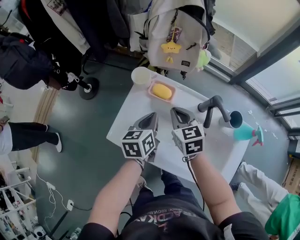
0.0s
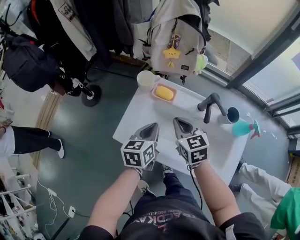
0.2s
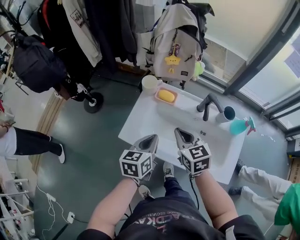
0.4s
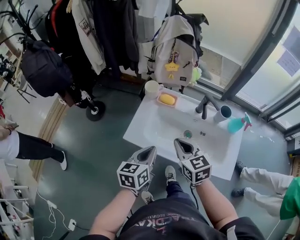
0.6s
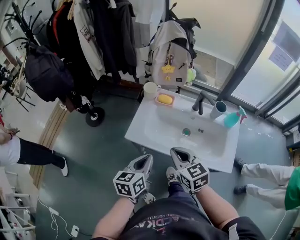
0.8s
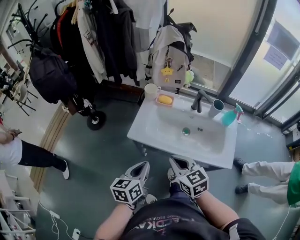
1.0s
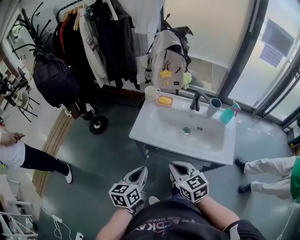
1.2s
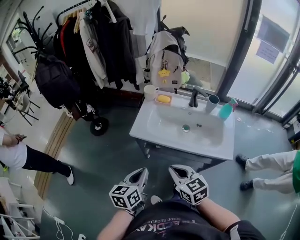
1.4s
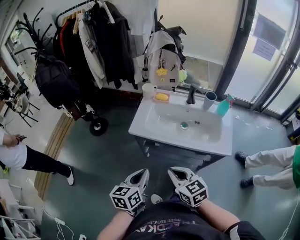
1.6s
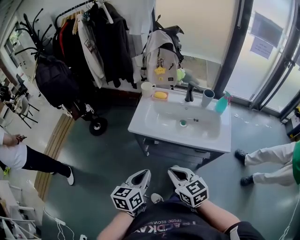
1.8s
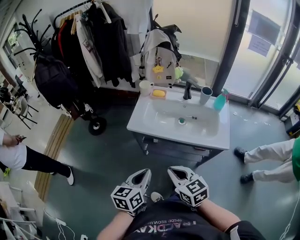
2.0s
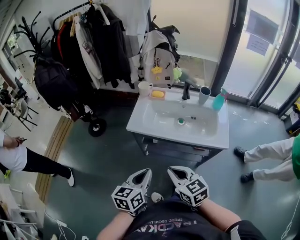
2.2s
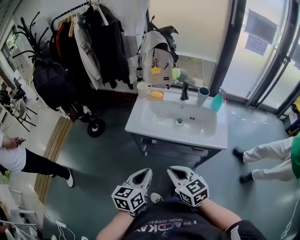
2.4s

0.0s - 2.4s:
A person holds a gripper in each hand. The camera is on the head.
0.0s - 1.2s: The grippers both shift backward by roughly 35 cm.
1.2s - 2.4s: Both grippers travel together backward, about 10 cm.

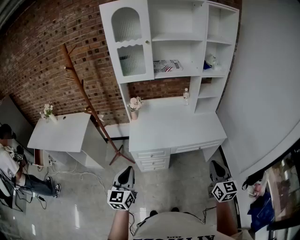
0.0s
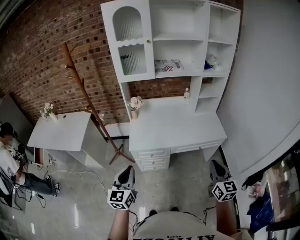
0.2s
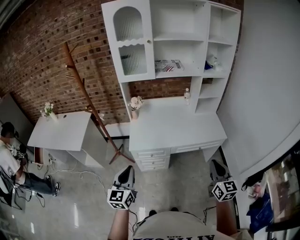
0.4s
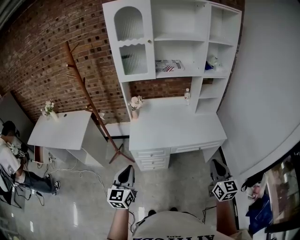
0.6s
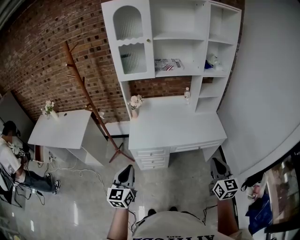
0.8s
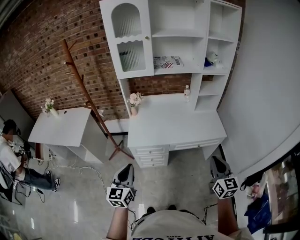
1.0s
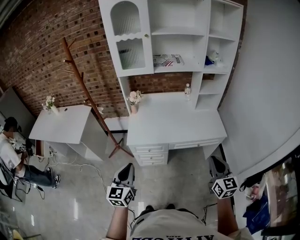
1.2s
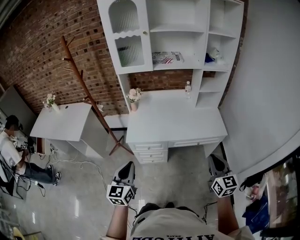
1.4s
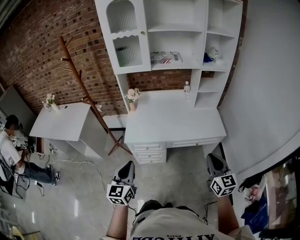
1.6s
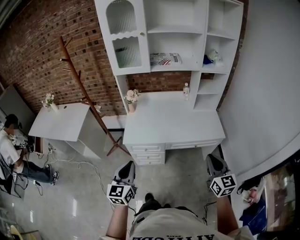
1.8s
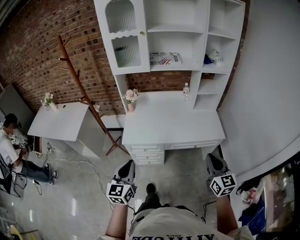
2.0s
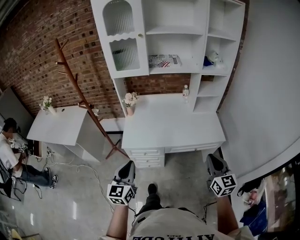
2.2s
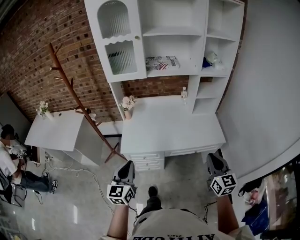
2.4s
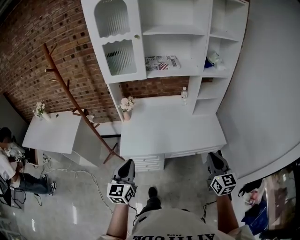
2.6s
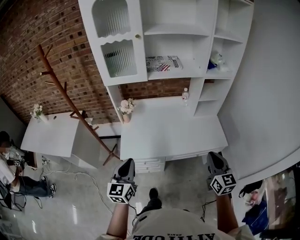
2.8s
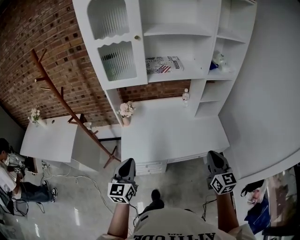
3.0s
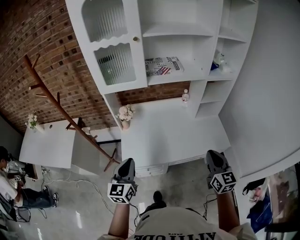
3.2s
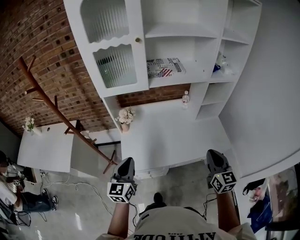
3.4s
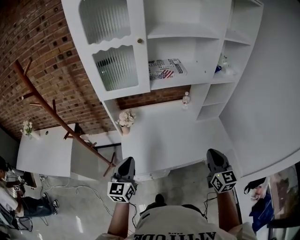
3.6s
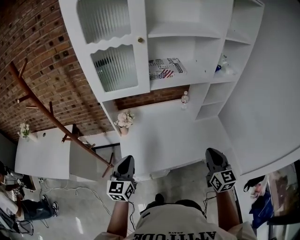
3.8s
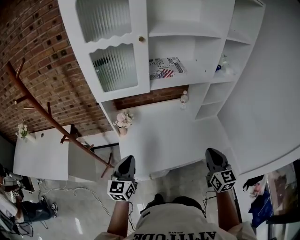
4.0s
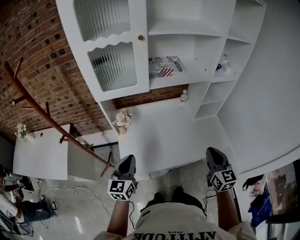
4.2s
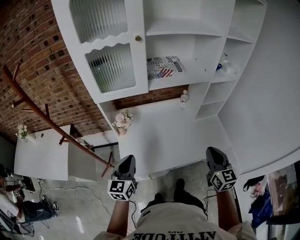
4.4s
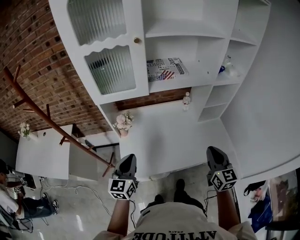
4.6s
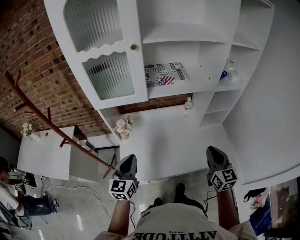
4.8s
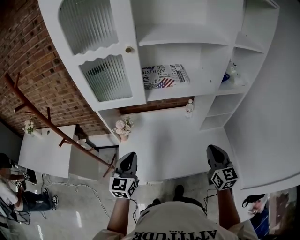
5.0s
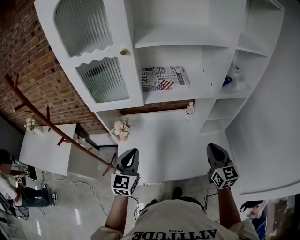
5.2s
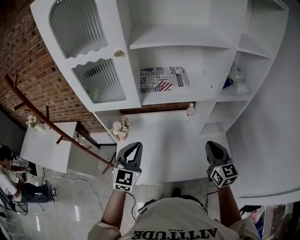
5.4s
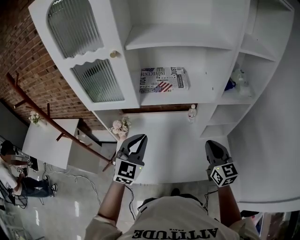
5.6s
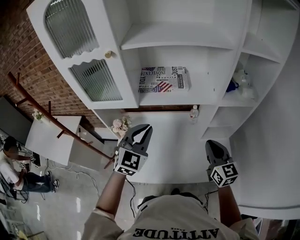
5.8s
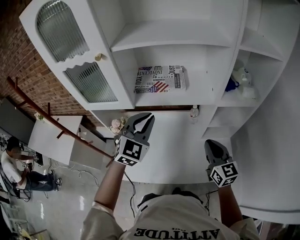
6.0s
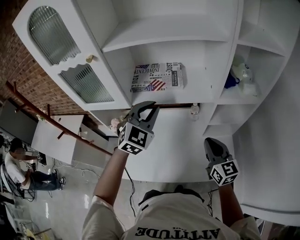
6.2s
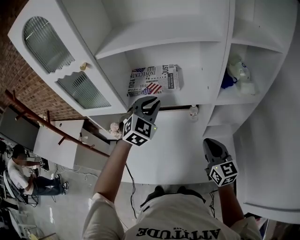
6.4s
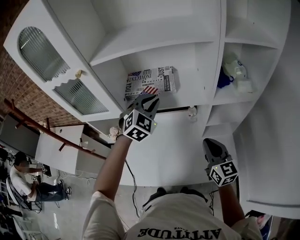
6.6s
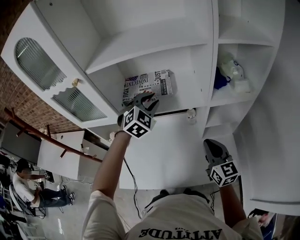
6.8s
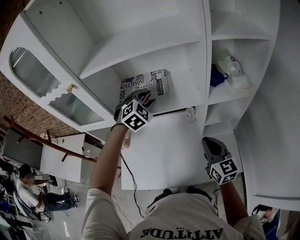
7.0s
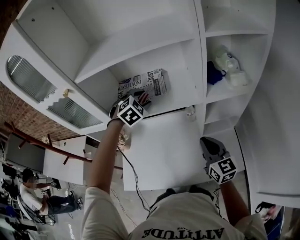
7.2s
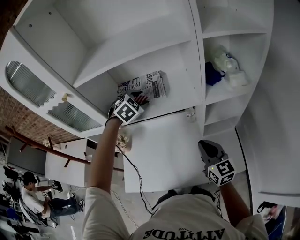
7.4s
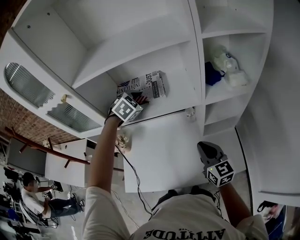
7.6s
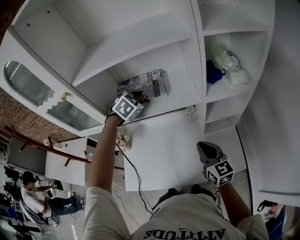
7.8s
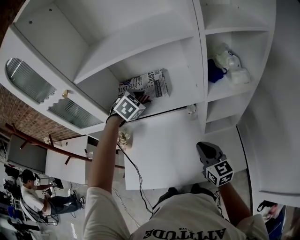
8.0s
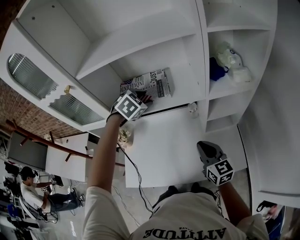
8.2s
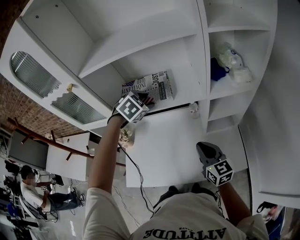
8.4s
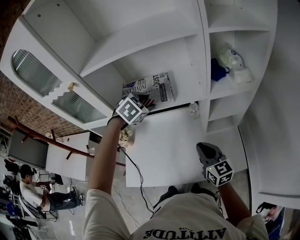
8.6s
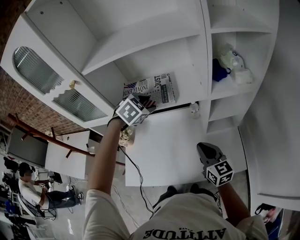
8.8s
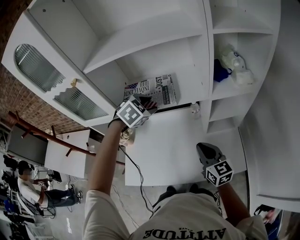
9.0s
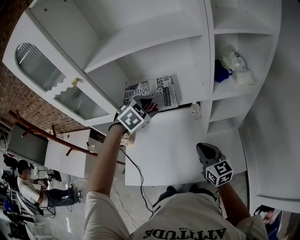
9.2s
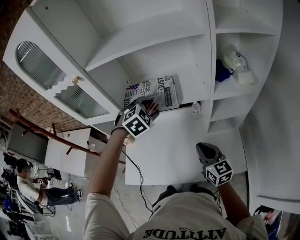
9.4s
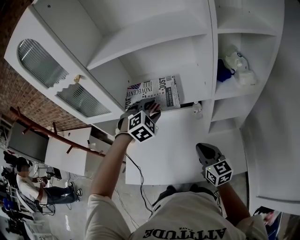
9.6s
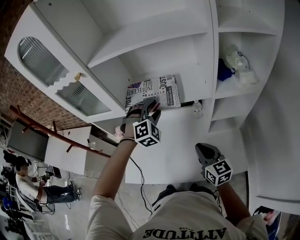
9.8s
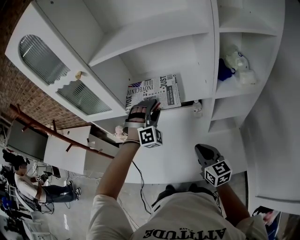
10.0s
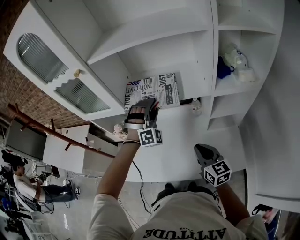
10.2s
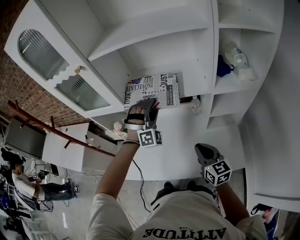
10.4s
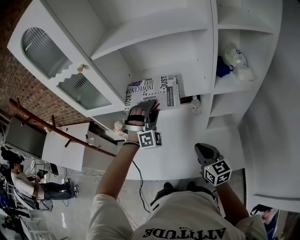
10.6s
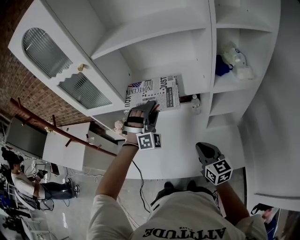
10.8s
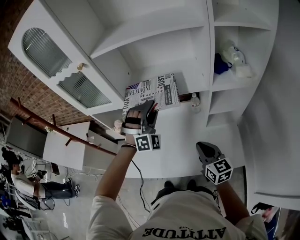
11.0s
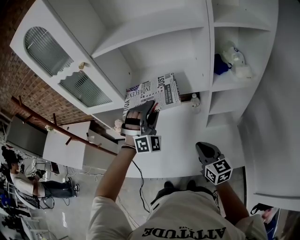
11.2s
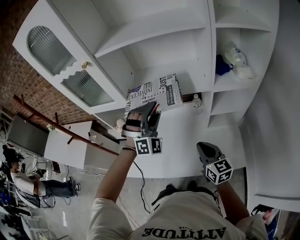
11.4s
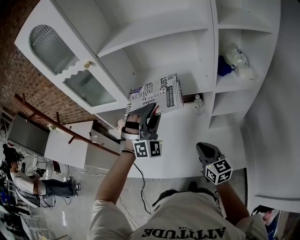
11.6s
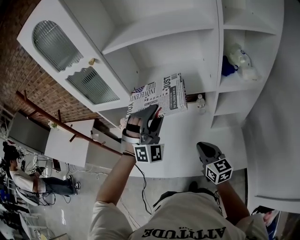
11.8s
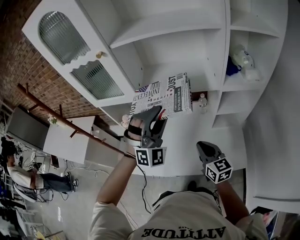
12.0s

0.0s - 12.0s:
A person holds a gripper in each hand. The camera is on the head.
0.0s - 1.6s: The left gripper travels to the right by roughly 5 cm. The right gripper moves about 5 cm.
1.6s - 3.0s: The grippers both shift forward by some 20 cm.
3.0s - 4.4s: The left gripper moves forward, roughly 15 cm, while the right gripper travels forward and to the left by approximately 10 cm.
4.4s - 6.0s: The right gripper shifts some 25 cm forward and to the right, and changes its angle by about 20 degrees. Meanwhile the left gripper heads forward, to the right and upward, covering roughly 35 cm, and turns by about 40 degrees.
6.0s - 7.6s: The left gripper is displaced forward by approximately 20 cm, points its fingers some 40 degrees further downward, and opens up.
7.6s - 9.0s: The left gripper is displaced backward by some 10 cm.
9.0s - 10.4s: The left gripper tips its fingers upward by approximately 40 degrees.
10.4s - 12.0s: The left gripper travels backward and upward by some 15 cm, and swivels roughly 20 degrees.

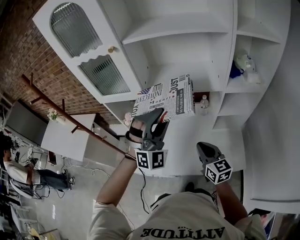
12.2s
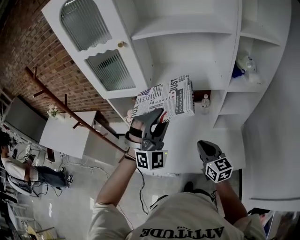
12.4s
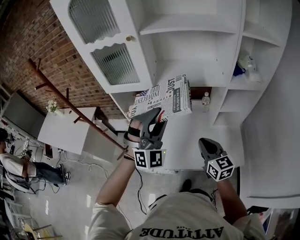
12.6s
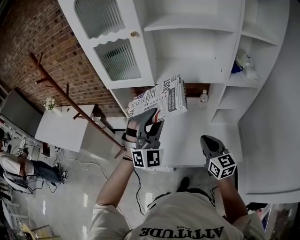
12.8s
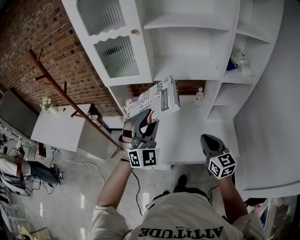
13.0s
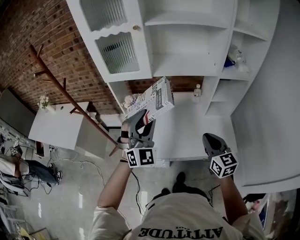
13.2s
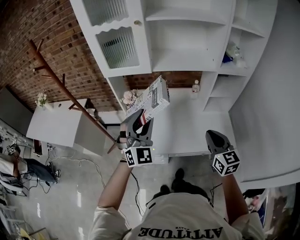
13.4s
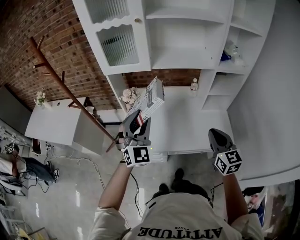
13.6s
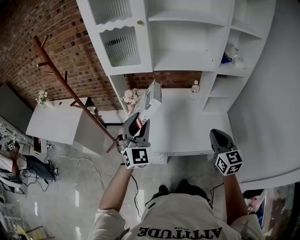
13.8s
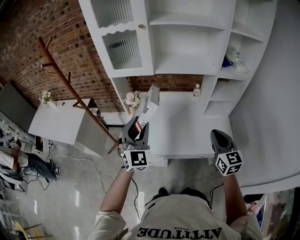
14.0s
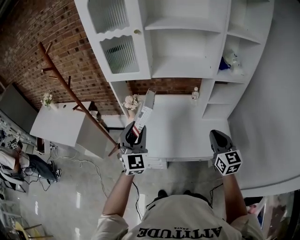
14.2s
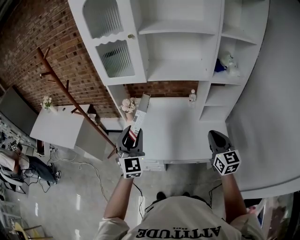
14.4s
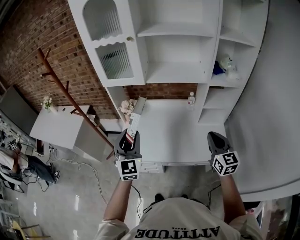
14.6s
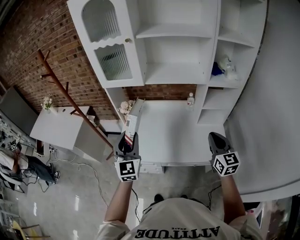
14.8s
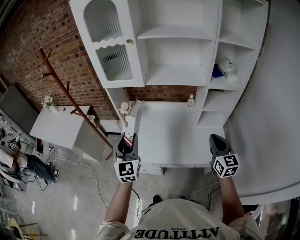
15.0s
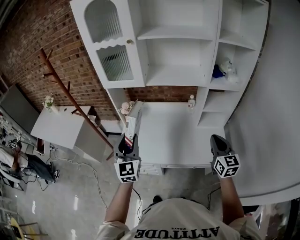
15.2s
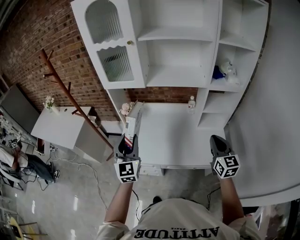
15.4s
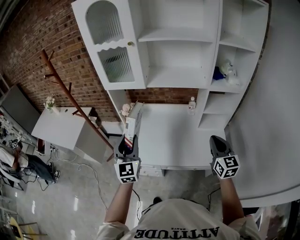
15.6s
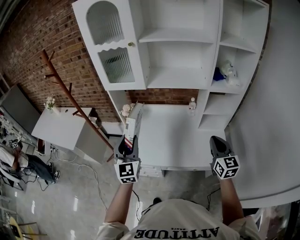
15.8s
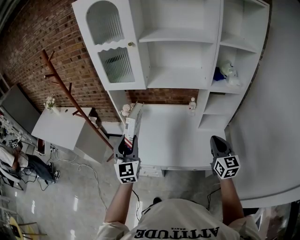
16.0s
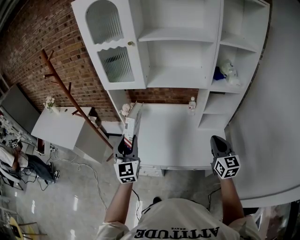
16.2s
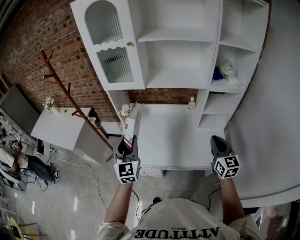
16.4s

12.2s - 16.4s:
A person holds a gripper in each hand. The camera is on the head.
12.2s - 13.6s: The left gripper moves to the left and backward, some 25 cm, and changes its angle by roughly 30 degrees, while the right gripper goes some 15 cm backward and upward.
13.6s - 15.0s: The right gripper shifts some 10 cm to the right, while the left gripper swivels about 30 degrees.
15.0s - 16.4s: The two grippers keep their place.

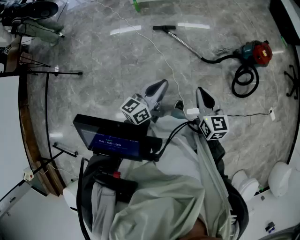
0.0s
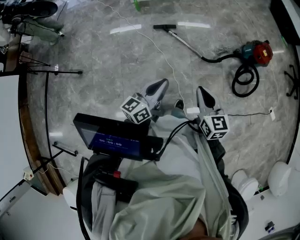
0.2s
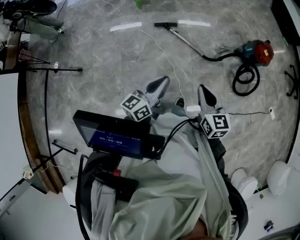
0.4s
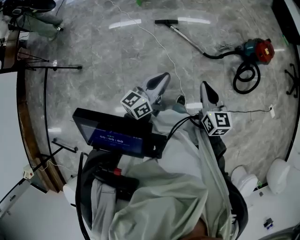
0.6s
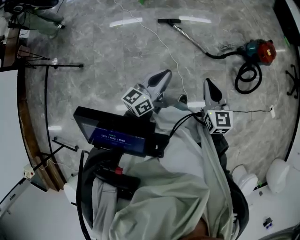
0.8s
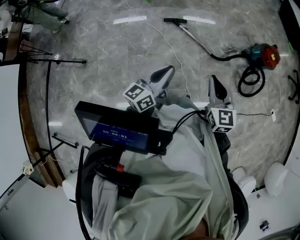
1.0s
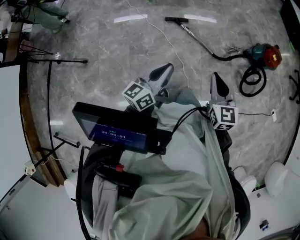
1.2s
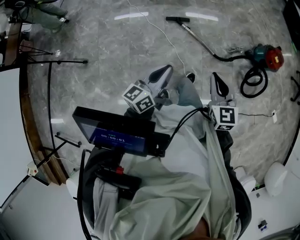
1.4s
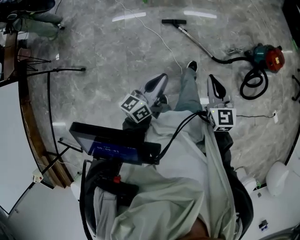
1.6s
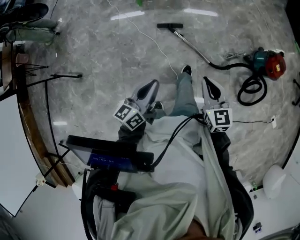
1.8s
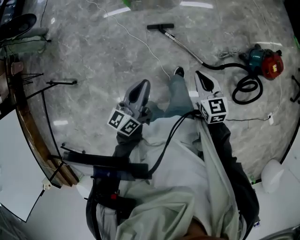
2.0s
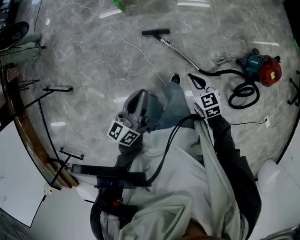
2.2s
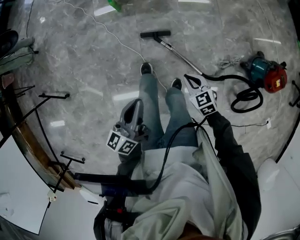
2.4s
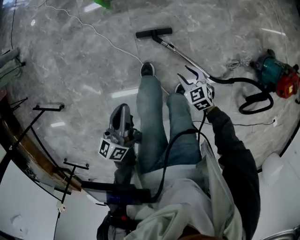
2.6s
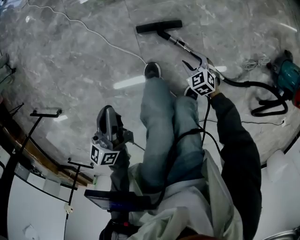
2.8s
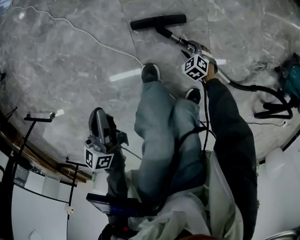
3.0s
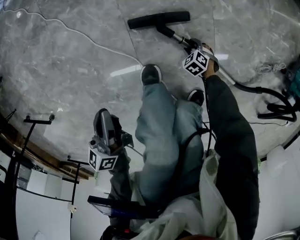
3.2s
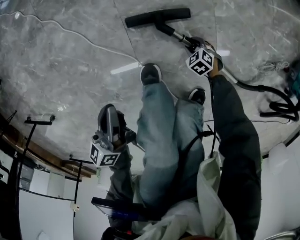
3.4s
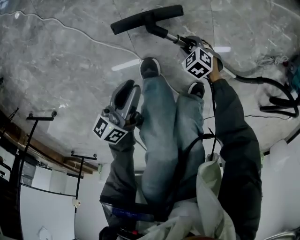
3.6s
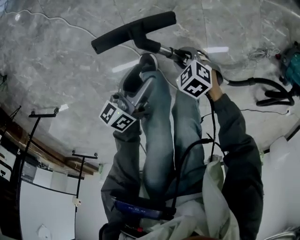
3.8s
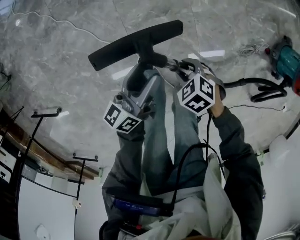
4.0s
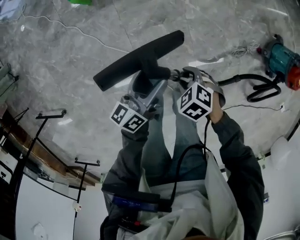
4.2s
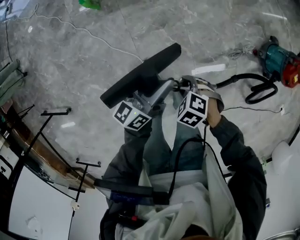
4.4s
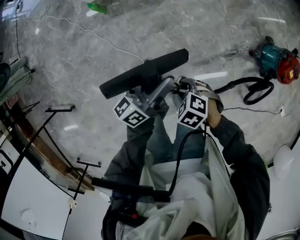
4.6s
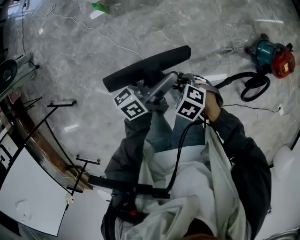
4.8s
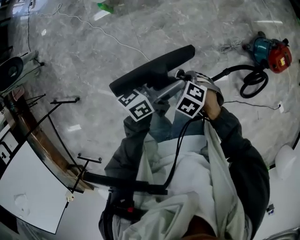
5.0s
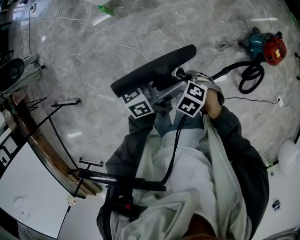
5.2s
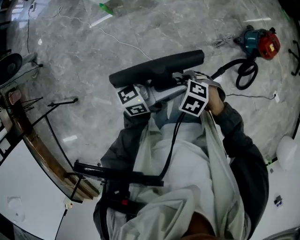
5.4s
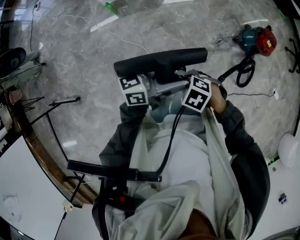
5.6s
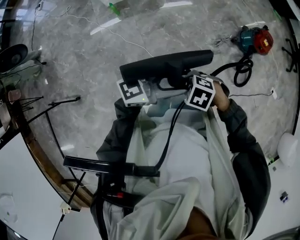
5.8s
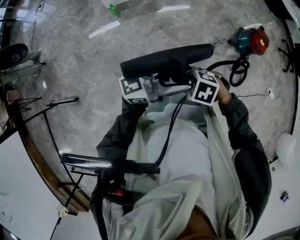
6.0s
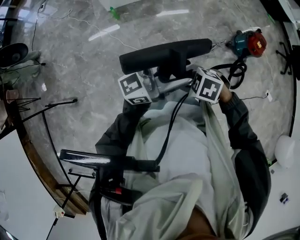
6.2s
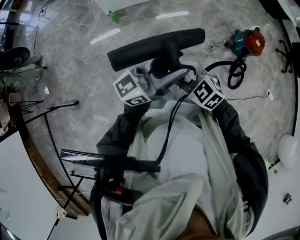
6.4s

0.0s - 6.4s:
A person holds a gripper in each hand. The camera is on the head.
0.0s - 1.6s: Both grippers move forward and to the left, about 15 cm.
1.6s - 3.2s: The pair of grippers is taken approximately 40 cm. The right gripper moves downward, roughly 90 cm, points its fingers approximately 60 degrees further downward, and opens; the left gripper is displaced downward by about 50 cm, and rotates approximately 30 degrees.
3.2s - 4.8s: The left gripper goes about 40 cm upward, turns by some 40 degrees, and opens, while the right gripper shifts approximately 60 cm upward.
4.8s - 6.4s: The two grippers go approximately 30 cm upward. The left gripper rotates some 50 degrees, and closes its fingers. The right gripper points its fingers some 30 degrees further upward.
